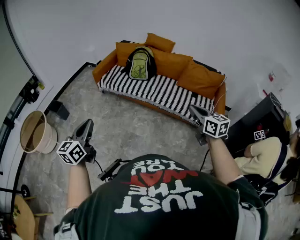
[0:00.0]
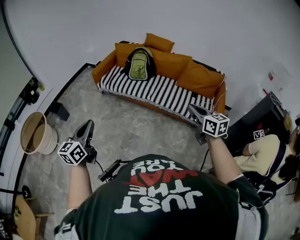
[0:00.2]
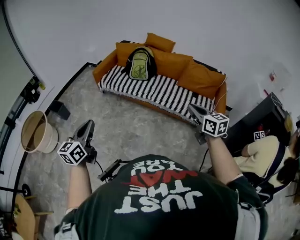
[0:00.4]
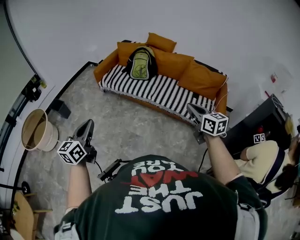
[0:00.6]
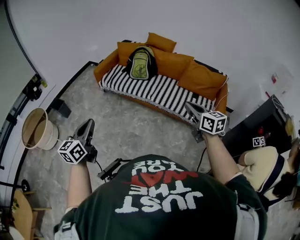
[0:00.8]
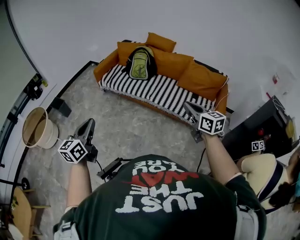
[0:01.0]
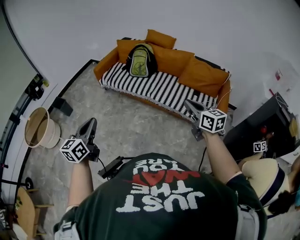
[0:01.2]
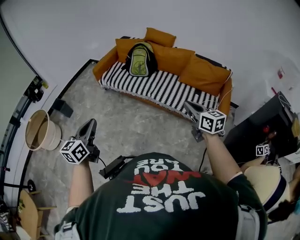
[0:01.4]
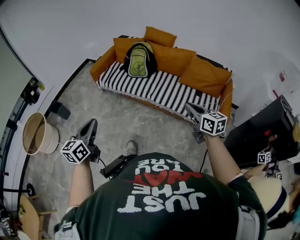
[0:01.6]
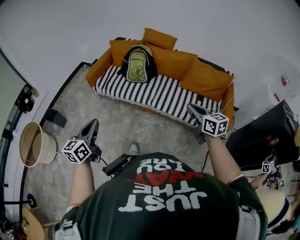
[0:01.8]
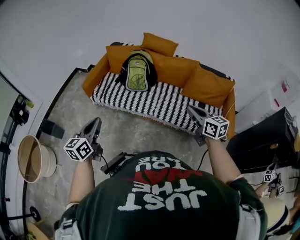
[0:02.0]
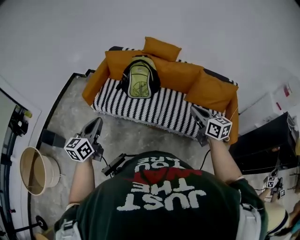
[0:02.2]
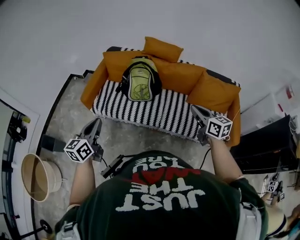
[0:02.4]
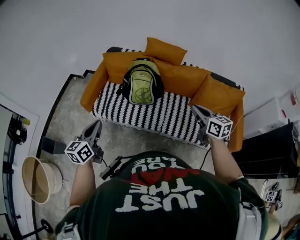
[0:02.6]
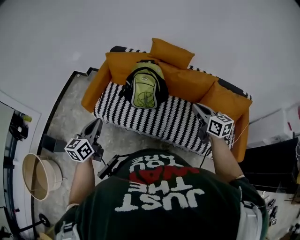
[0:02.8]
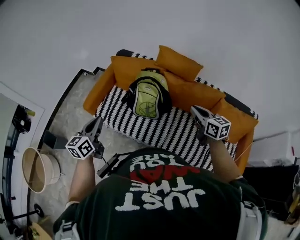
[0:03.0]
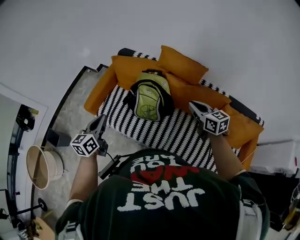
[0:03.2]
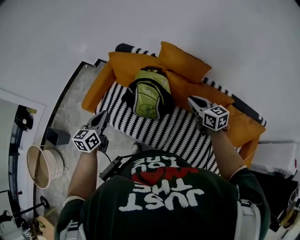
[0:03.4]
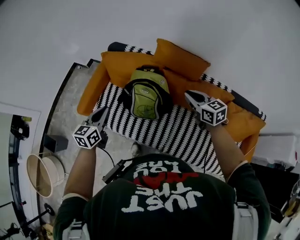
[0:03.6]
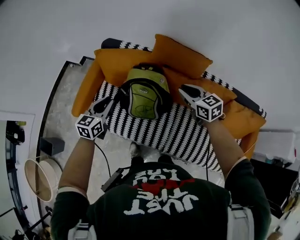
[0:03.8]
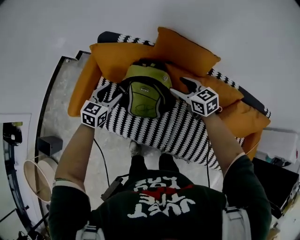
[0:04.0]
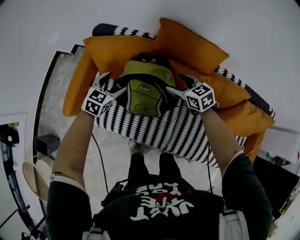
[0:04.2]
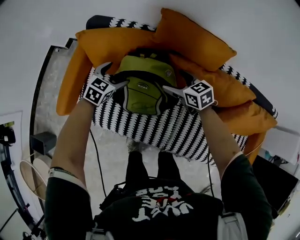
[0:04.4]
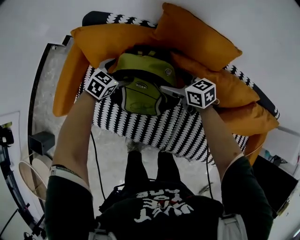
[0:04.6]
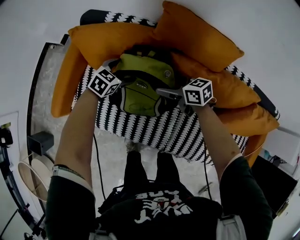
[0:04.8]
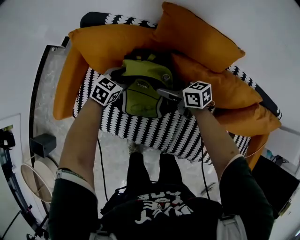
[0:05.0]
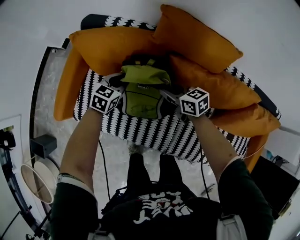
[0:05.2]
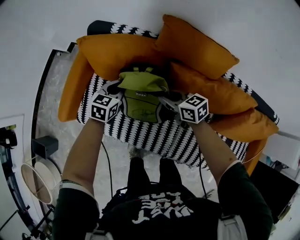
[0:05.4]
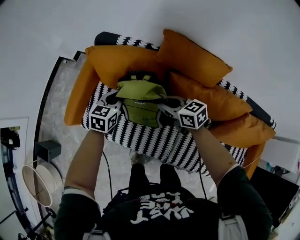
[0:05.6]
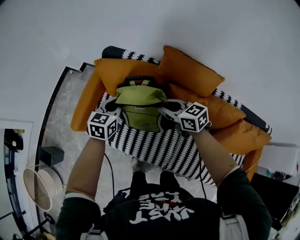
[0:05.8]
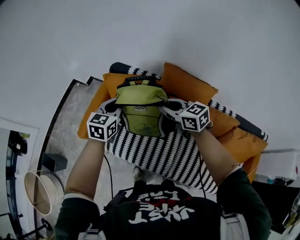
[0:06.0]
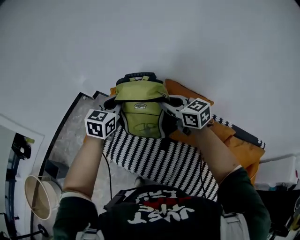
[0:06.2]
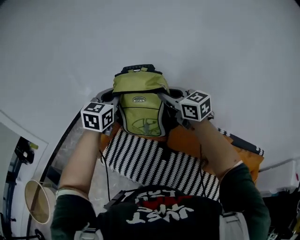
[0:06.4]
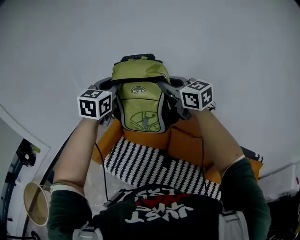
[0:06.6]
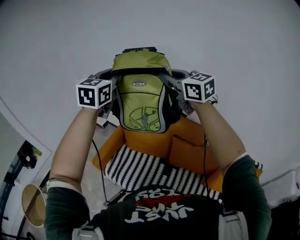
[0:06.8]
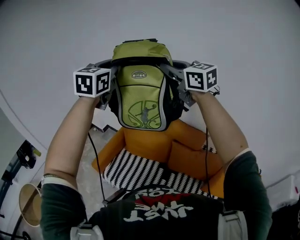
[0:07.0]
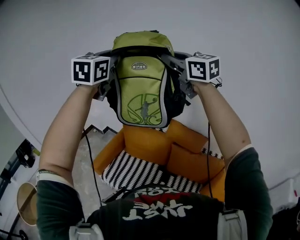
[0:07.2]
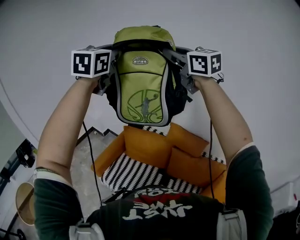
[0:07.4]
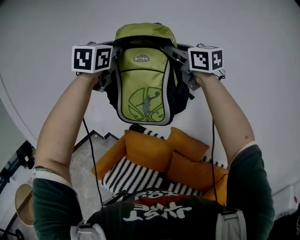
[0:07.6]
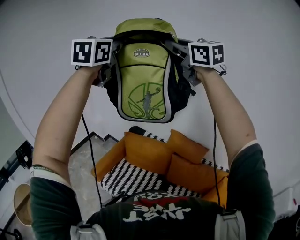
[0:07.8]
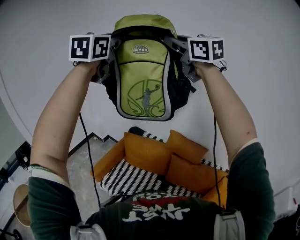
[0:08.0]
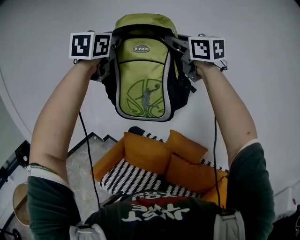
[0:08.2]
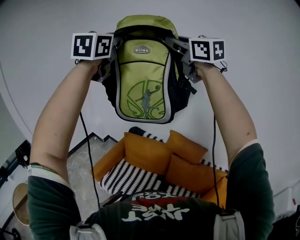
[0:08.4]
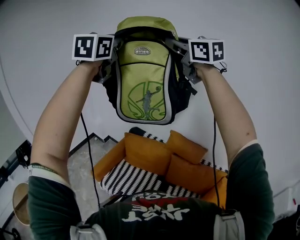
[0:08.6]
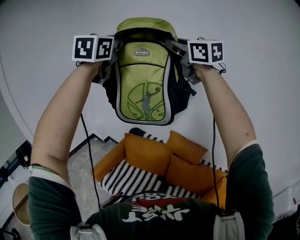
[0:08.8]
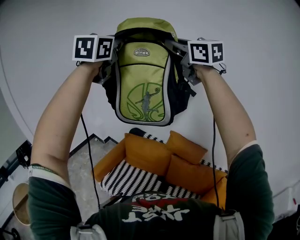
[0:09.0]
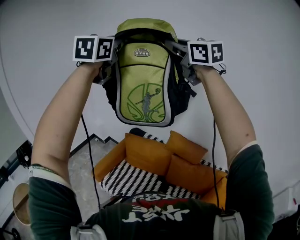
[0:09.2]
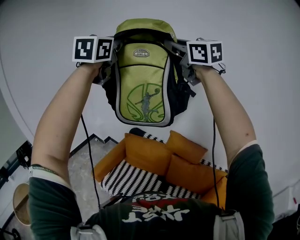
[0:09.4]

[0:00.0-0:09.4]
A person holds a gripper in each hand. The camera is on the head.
0.0 to 1.6 s: The right gripper moves forward and to the right, some 10 cm; the left gripper shifts roughly 10 cm to the right and forward.
1.6 to 3.2 s: Both grippers are carried forward, approximately 60 cm.
3.2 to 4.8 s: The right gripper heads downward, forward and to the left, covering roughly 35 cm, rotates some 20 degrees, and opens. The left gripper heads downward, forward and to the right, covering approximately 50 cm, rotates roughly 60 degrees, and opens.
4.8 to 6.2 s: The grippers both shift upward by roughly 40 cm. The right gripper rotates roughly 30 degrees, and closes its fingers; the left gripper rotates about 40 degrees, and closes its fingers.
6.2 to 7.8 s: Both grippers travel together upward, roughly 50 cm. The right gripper turns by some 30 degrees, while the left gripper swivels roughly 30 degrees.
7.8 to 9.4 s: Neither gripper changes place.

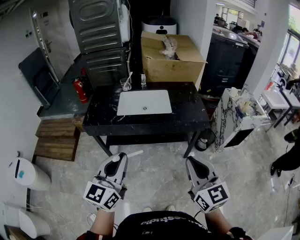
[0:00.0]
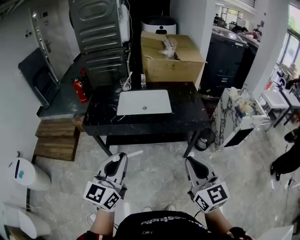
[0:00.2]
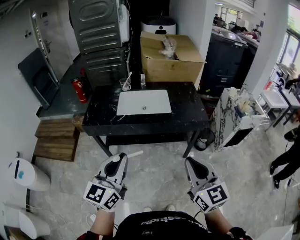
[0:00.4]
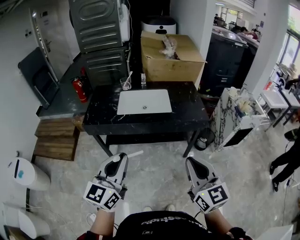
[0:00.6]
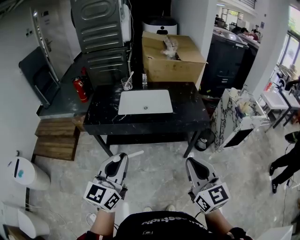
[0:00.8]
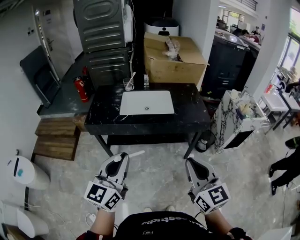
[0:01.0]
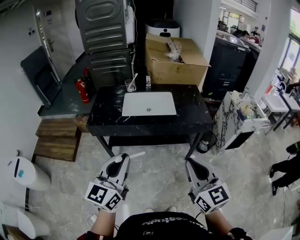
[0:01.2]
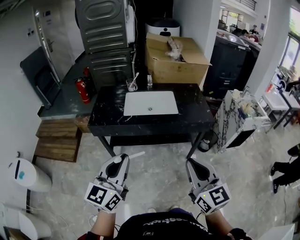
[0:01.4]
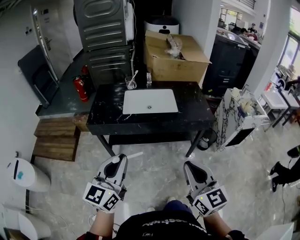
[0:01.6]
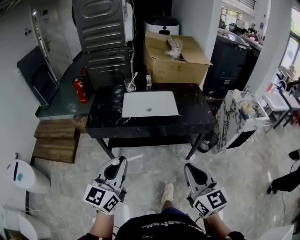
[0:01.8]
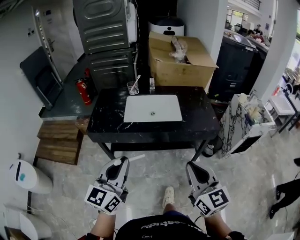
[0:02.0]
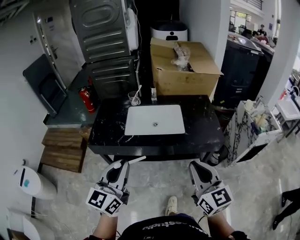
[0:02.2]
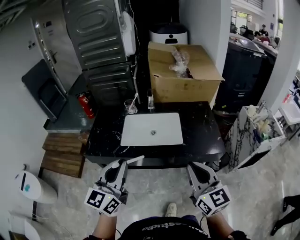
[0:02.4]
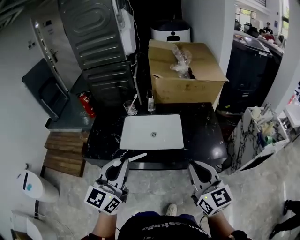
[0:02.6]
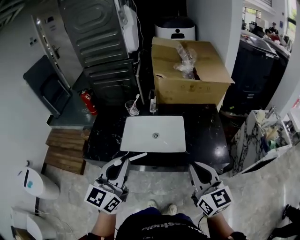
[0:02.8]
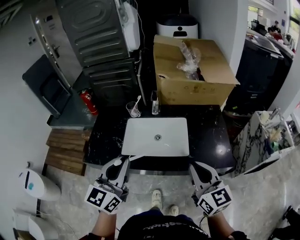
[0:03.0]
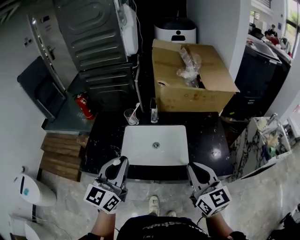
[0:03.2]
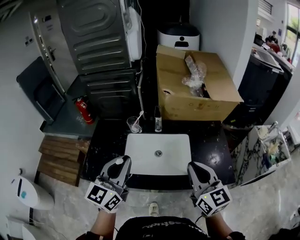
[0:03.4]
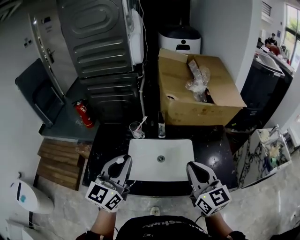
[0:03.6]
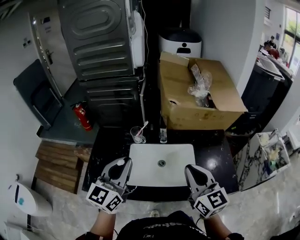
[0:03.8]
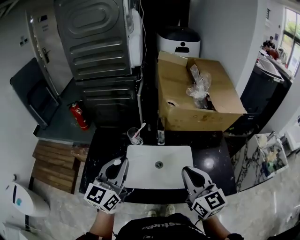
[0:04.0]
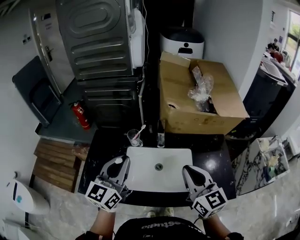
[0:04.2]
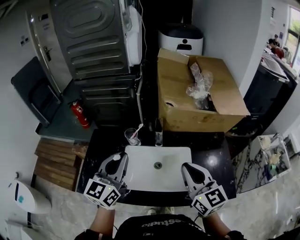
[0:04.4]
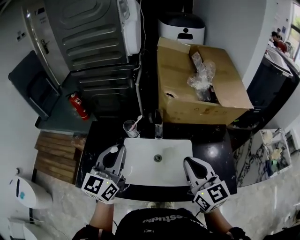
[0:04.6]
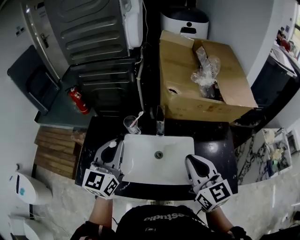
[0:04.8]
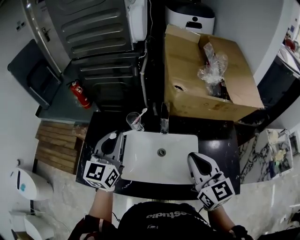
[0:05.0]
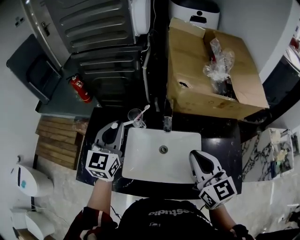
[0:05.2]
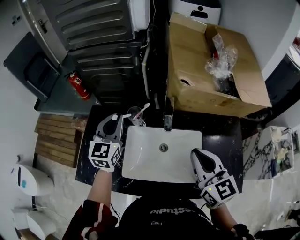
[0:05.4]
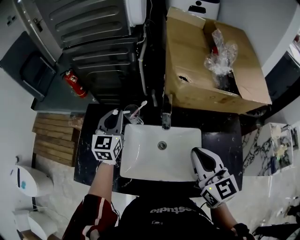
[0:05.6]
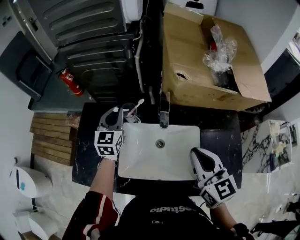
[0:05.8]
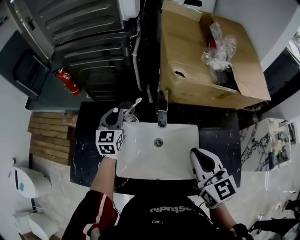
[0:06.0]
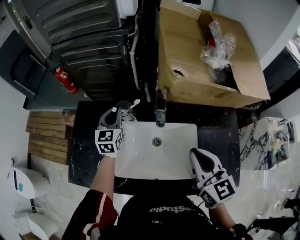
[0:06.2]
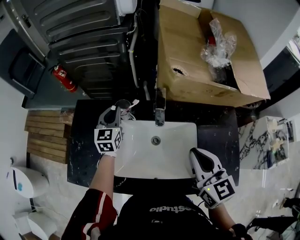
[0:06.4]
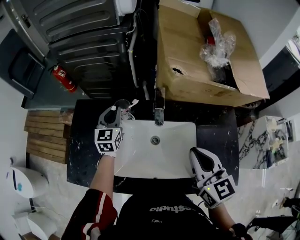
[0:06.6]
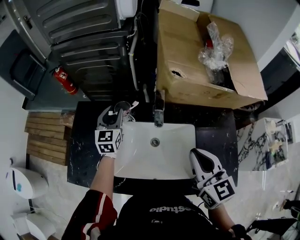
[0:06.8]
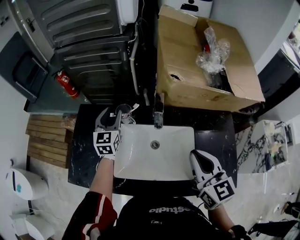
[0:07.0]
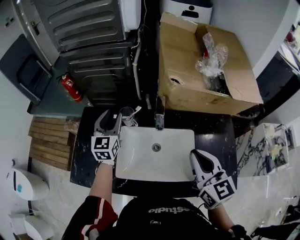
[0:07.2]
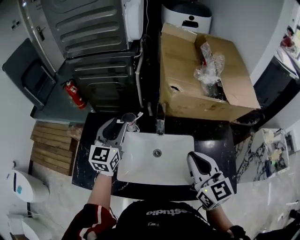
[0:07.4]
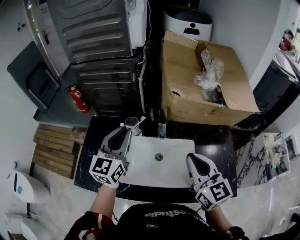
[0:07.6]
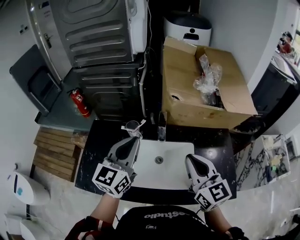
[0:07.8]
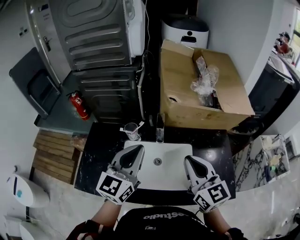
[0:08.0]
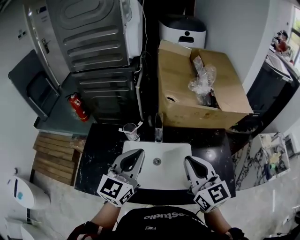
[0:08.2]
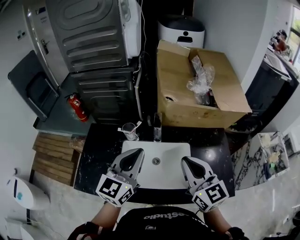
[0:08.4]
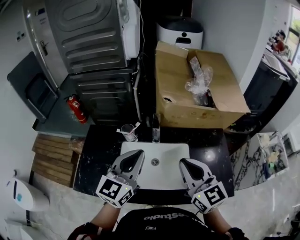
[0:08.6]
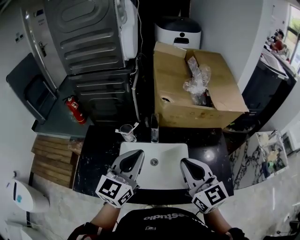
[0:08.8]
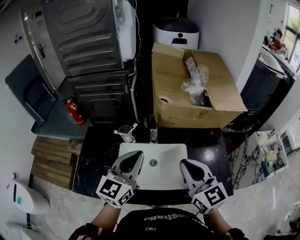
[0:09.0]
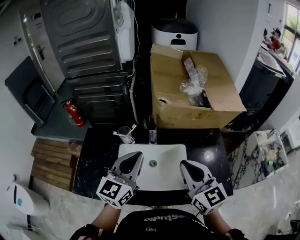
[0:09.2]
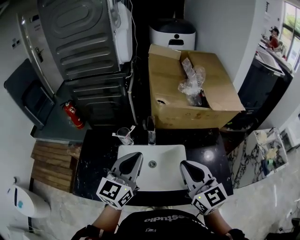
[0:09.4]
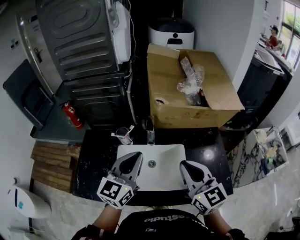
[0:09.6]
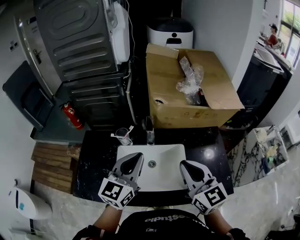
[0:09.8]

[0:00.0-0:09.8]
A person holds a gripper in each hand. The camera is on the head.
0.0 to 1.4 s: Both grippers move to the left, roughly 5 cm.
1.4 to 2.8 s: The grippers both shift forward by approximately 35 cm.
2.8 to 4.2 s: The left gripper travels forward by about 25 cm. The right gripper moves forward and to the left, roughly 25 cm.
4.2 to 5.6 s: The right gripper shifts roughly 10 cm forward and downward. Meanwhile the left gripper is displaced forward and downward by about 25 cm, and rotates about 20 degrees.
5.6 to 7.0 s: The left gripper heads downward, covering about 5 cm, and opens.
7.0 to 8.4 s: The right gripper is displaced upward and backward by approximately 10 cm; the left gripper shifts roughly 30 cm backward, upward and to the right, changes its angle by approximately 30 degrees, and closes up.
8.4 to 9.8 s: There are only small adjustments of the grippers.

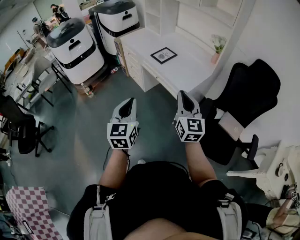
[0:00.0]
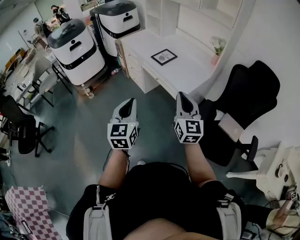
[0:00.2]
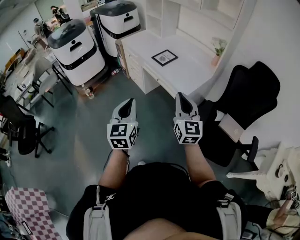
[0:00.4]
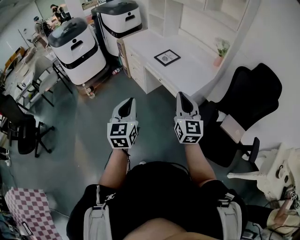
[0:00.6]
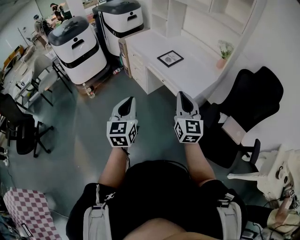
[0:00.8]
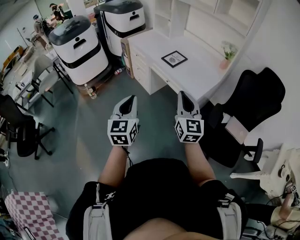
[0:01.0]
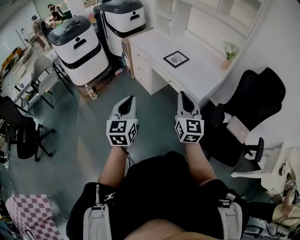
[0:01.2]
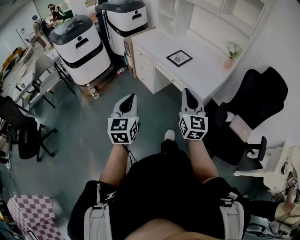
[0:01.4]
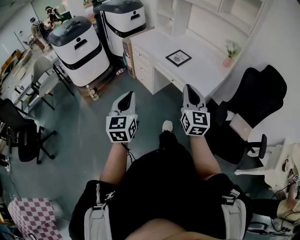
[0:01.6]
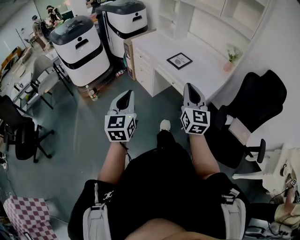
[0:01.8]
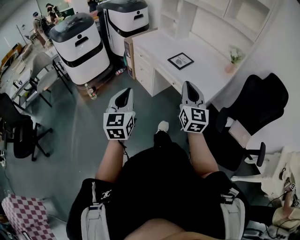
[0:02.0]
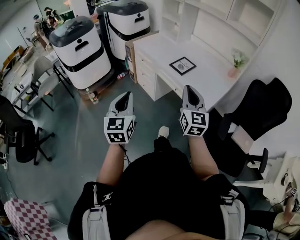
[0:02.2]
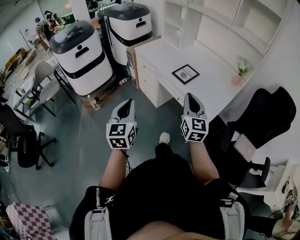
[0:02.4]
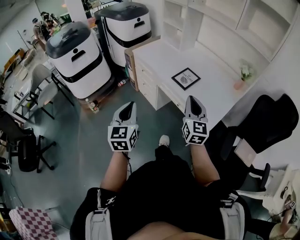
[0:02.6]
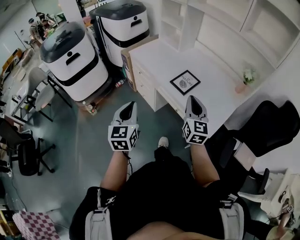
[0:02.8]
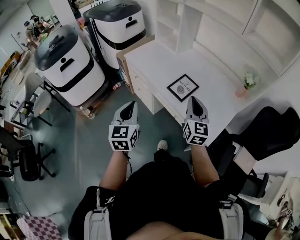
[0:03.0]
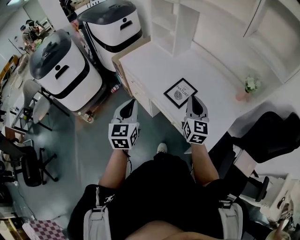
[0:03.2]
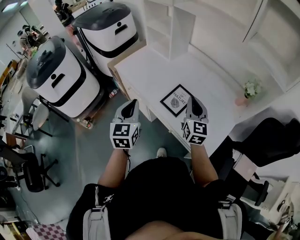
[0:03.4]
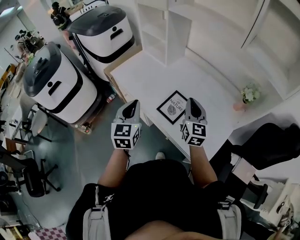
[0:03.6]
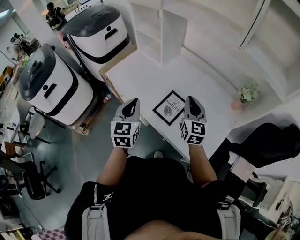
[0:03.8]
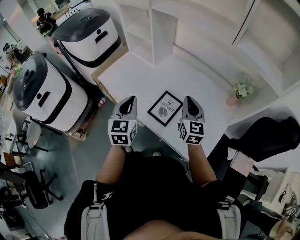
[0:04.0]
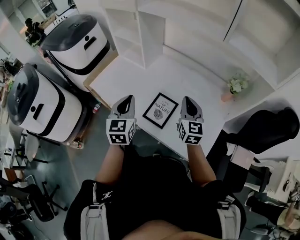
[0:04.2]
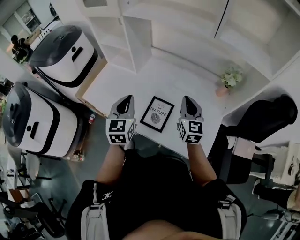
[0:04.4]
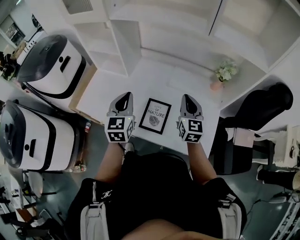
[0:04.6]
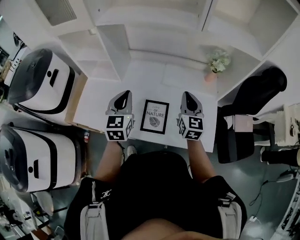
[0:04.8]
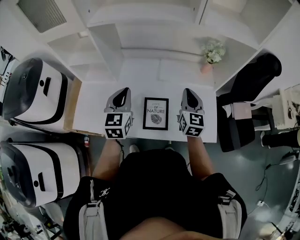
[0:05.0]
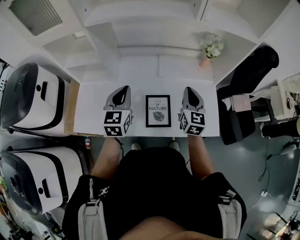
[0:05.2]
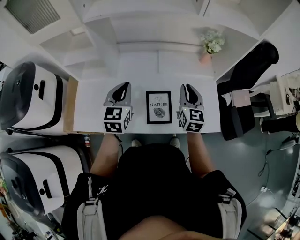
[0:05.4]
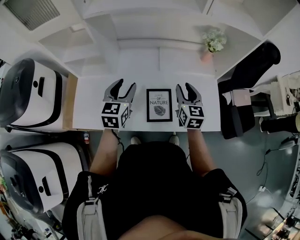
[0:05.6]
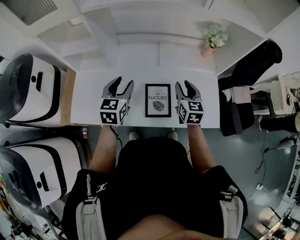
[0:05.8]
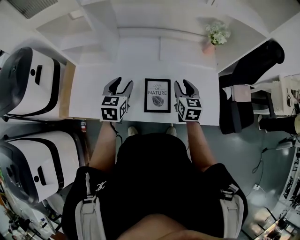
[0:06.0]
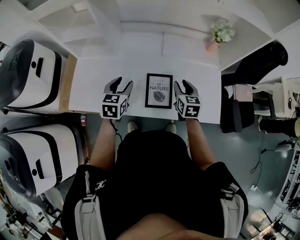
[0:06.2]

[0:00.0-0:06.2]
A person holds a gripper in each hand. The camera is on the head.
0.0 to 1.6 s: The two grippers go approximately 15 cm to the left.
1.6 to 3.2 s: The pair of grippers is taken forward, roughly 40 cm.
3.2 to 4.6 s: The left gripper ends up about 30 cm from where it was, and changes its angle by roughly 30 degrees. The right gripper moves some 20 cm, and swivels some 30 degrees.
4.6 to 6.2 s: The two grippers go some 15 cm downward. The left gripper changes its angle by about 30 degrees, and opens its fingers; the right gripper turns by some 30 degrees, and opens up.
